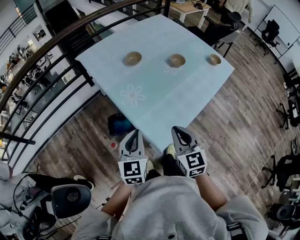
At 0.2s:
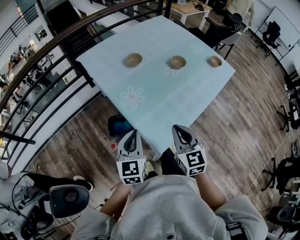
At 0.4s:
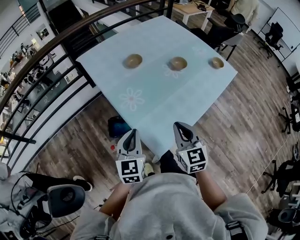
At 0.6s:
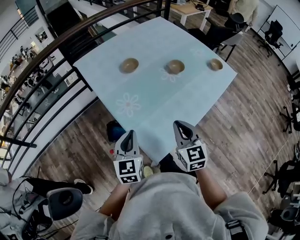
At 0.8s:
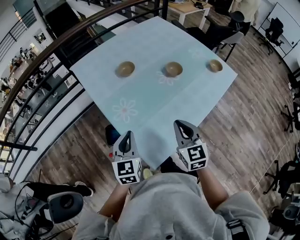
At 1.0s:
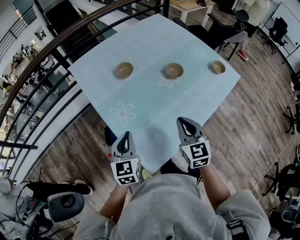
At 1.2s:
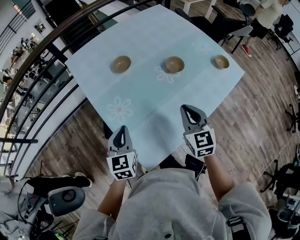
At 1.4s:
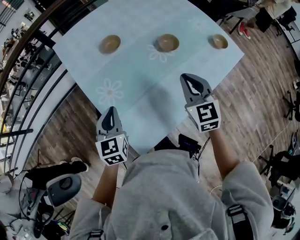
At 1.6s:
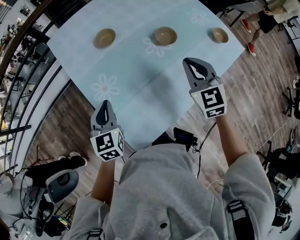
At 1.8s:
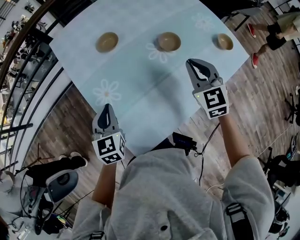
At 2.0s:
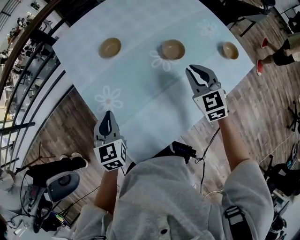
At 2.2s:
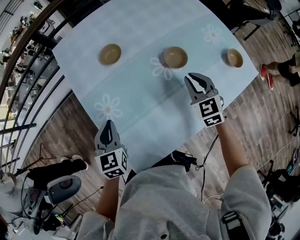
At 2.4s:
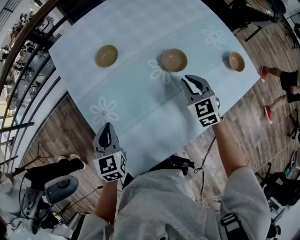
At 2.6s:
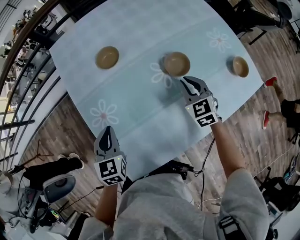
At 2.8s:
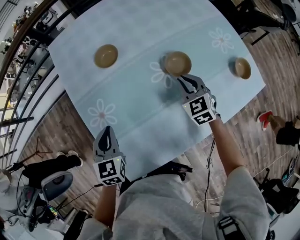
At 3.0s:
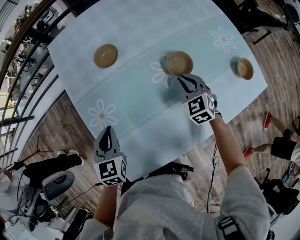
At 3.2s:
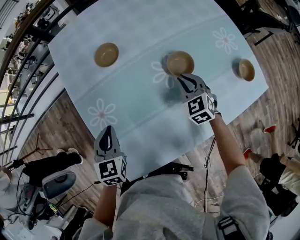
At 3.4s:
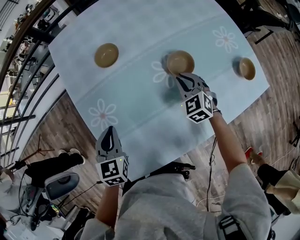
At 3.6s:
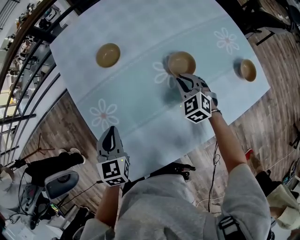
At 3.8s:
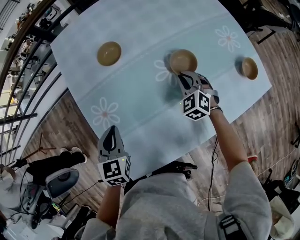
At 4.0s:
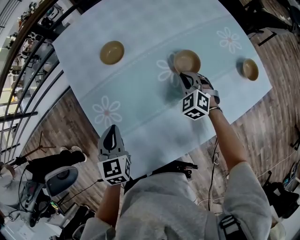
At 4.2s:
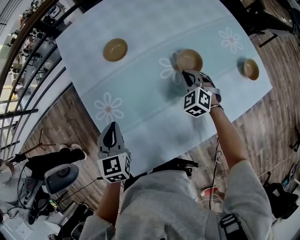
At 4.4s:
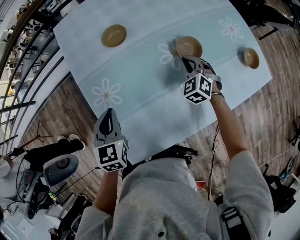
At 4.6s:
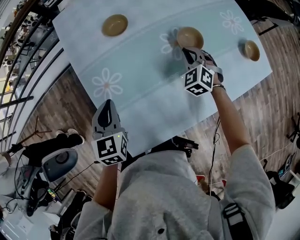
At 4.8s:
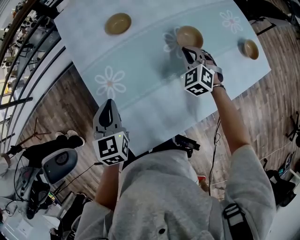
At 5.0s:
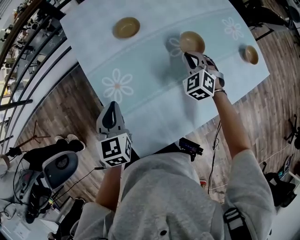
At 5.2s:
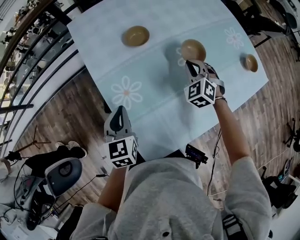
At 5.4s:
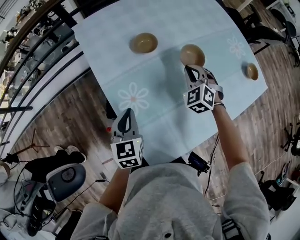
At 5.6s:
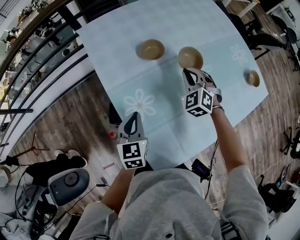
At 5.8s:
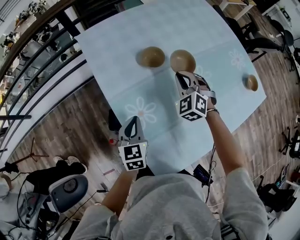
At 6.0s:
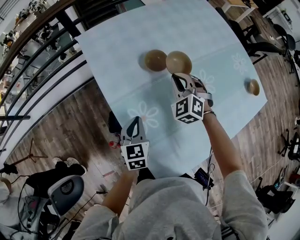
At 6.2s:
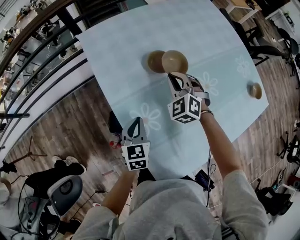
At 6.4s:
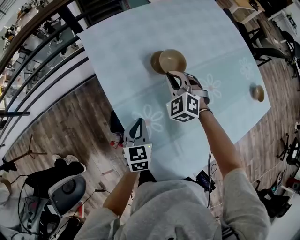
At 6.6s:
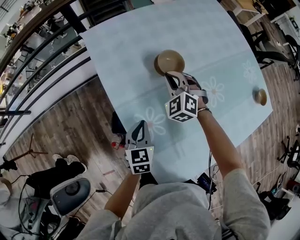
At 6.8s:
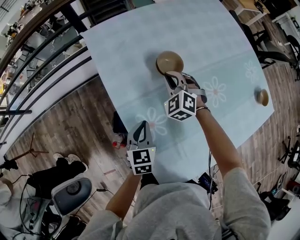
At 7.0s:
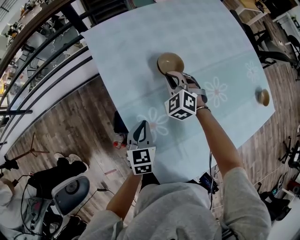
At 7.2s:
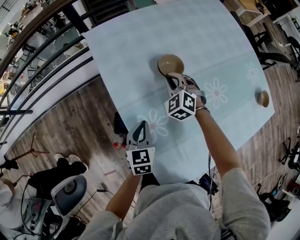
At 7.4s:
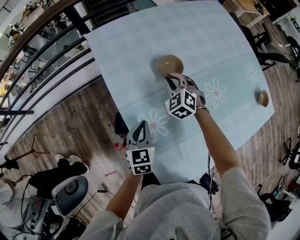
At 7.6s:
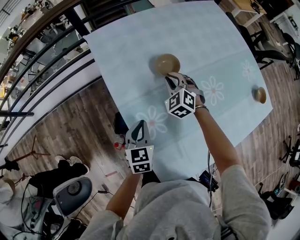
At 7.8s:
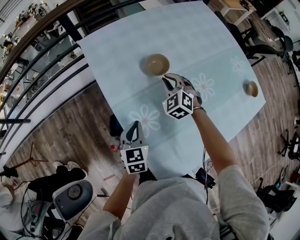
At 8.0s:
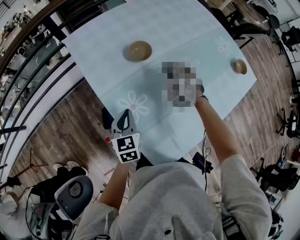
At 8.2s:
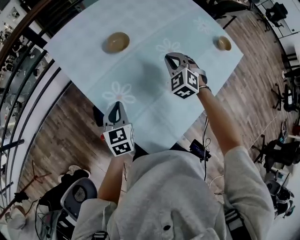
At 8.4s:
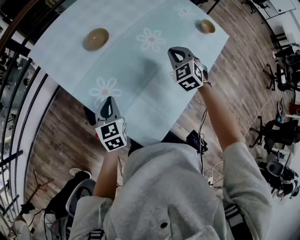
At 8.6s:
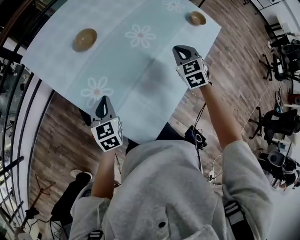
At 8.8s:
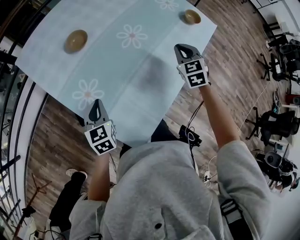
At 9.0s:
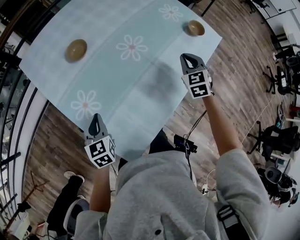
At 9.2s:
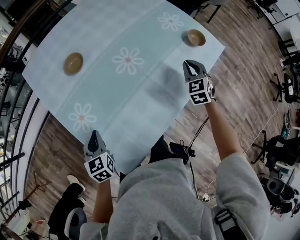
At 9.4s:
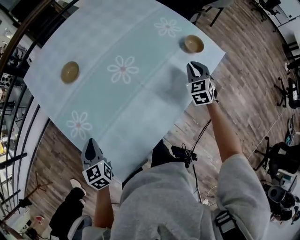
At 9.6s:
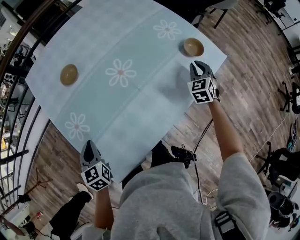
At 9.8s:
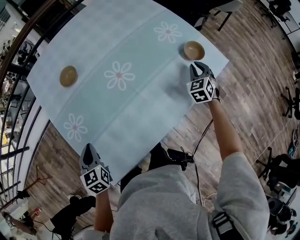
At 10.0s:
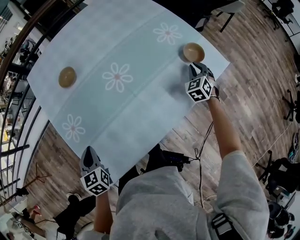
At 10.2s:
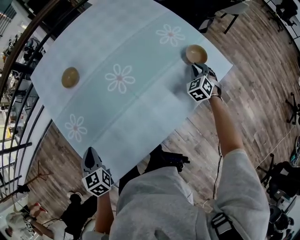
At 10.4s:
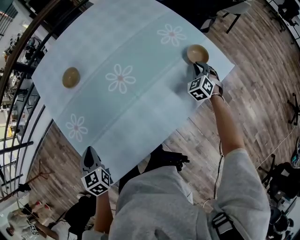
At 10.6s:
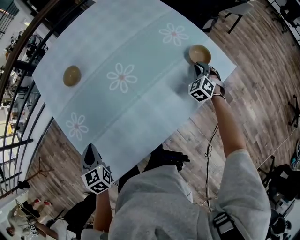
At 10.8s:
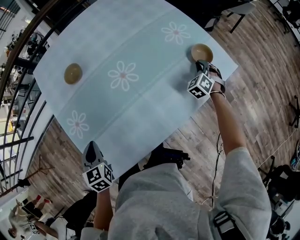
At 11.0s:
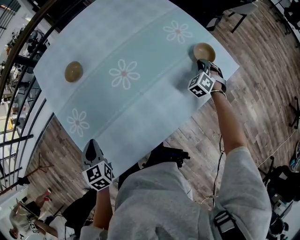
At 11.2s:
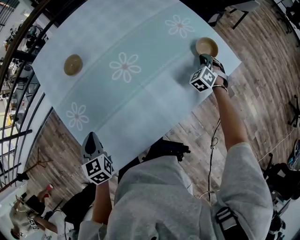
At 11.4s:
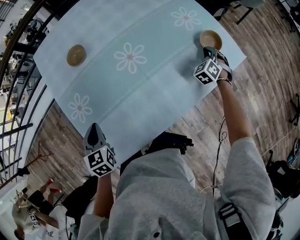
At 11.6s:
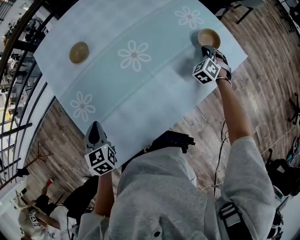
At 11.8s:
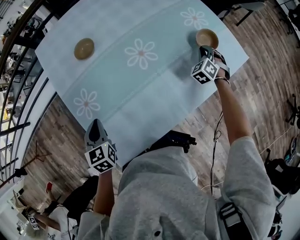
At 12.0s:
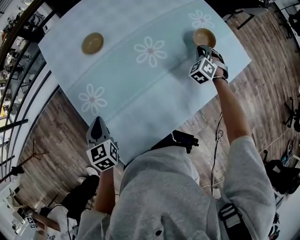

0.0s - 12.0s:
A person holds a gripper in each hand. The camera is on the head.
0.0s - 1.6s: The right gripper travels forward and to the right by some 35 cm; the left gripper moves forward, about 20 cm.
1.6s - 3.0s: The left gripper heads downward, covering about 5 cm; the right gripper moves downward and forward, roughly 20 cm, and rotates some 20 degrees.
3.0s - 4.4s: The grippers make only small movements.
4.4s - 6.0s: The right gripper goes some 20 cm to the left; the left gripper heads to the left, forward and downward, covering roughly 15 cm.
6.0s - 7.6s: The right gripper travels to the left and downward by roughly 10 cm.
7.6s - 9.0s: The right gripper moves to the right, about 50 cm, and rotates roughly 40 degrees. Meanwhile the left gripper shifts about 15 cm to the right and backward.
9.0s - 10.4s: The left gripper moves roughly 5 cm, and swivels some 20 degrees. The right gripper travels to the right, forward and downward by approximately 25 cm, and swivels approximately 20 degrees.
10.4s - 12.0s: The left gripper travels to the left by some 5 cm, while the right gripper is displaced to the left by about 15 cm.

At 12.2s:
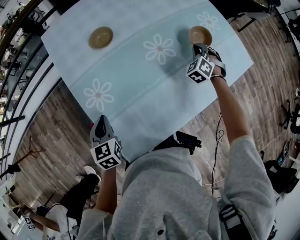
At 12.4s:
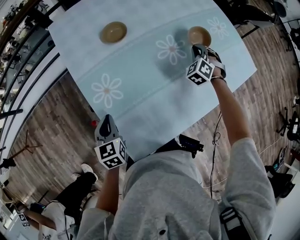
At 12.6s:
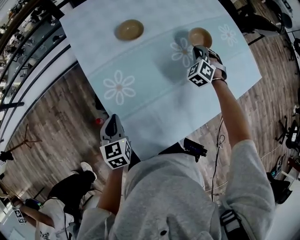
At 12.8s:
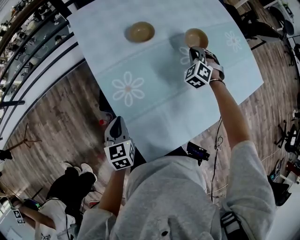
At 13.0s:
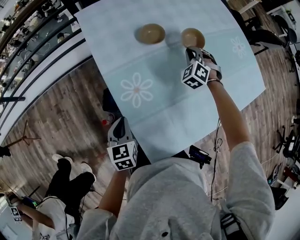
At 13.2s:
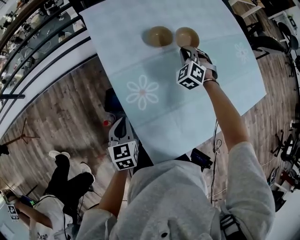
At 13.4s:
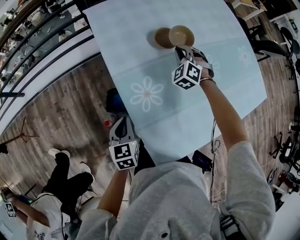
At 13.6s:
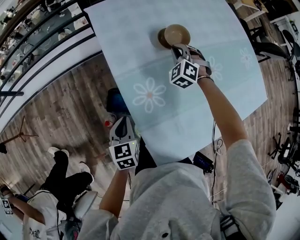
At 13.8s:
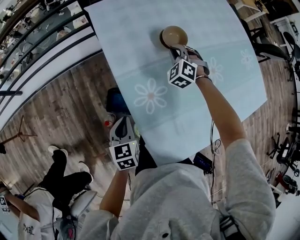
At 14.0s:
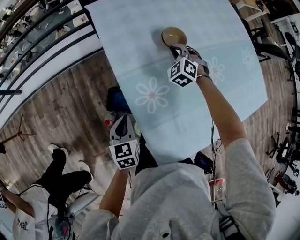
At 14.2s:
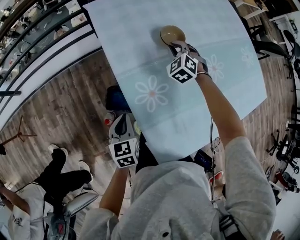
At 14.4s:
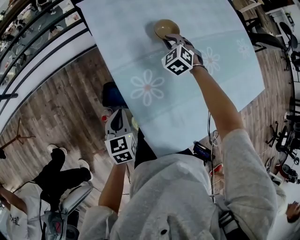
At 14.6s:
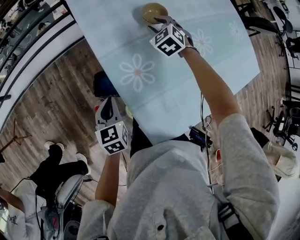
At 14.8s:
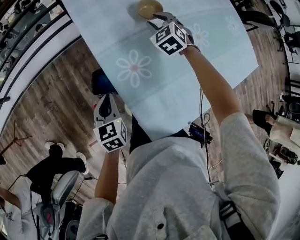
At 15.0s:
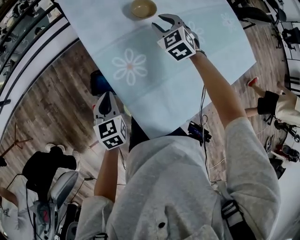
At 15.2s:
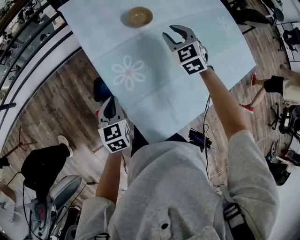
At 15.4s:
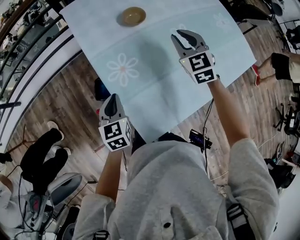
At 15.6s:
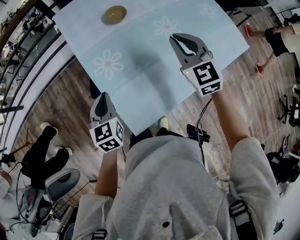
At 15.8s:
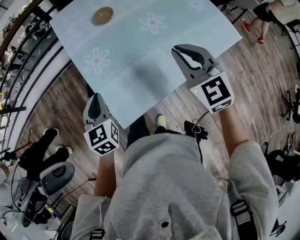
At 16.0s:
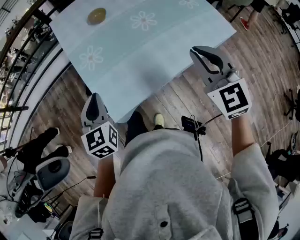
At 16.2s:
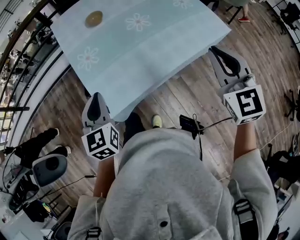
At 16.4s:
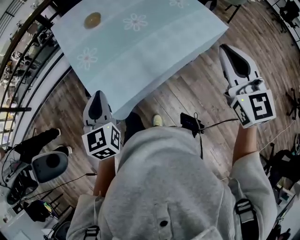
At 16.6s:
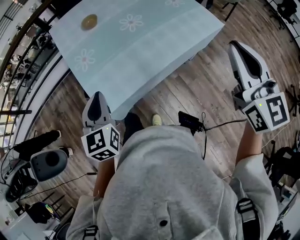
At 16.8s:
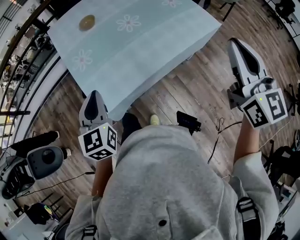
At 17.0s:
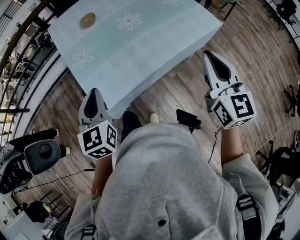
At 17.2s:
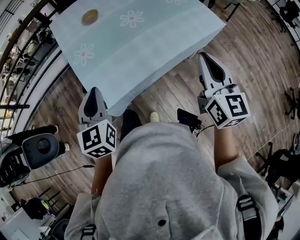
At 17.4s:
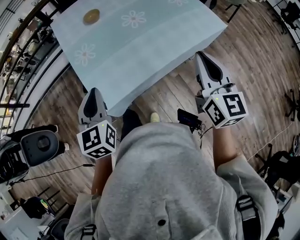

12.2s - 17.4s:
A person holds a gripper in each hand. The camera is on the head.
12.2s - 14.0s: The left gripper shifts approximately 15 cm to the left, while the right gripper is displaced to the left by approximately 40 cm, and swivels approximately 20 degrees.
14.0s - 15.6s: The left gripper heads to the right, upward and backward, covering some 20 cm, while the right gripper goes about 40 cm backward, upward and to the right, turns by roughly 40 degrees, and opens, then closes once more.
15.6s - 17.4s: The left gripper heads backward, to the right and upward, covering approximately 20 cm; the right gripper travels backward and to the right by about 35 cm, and swivels about 30 degrees.

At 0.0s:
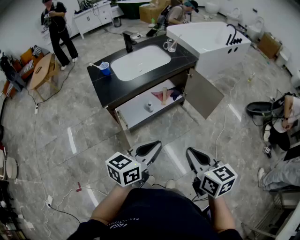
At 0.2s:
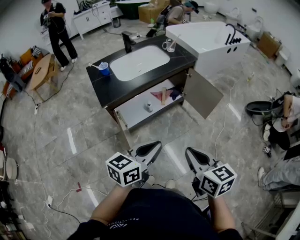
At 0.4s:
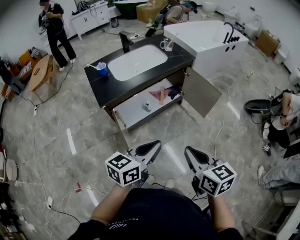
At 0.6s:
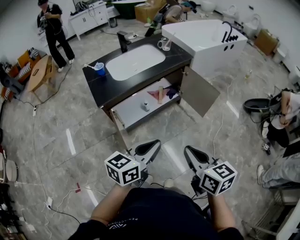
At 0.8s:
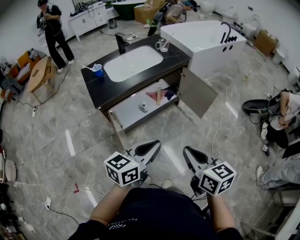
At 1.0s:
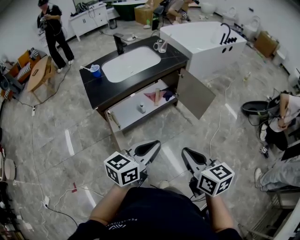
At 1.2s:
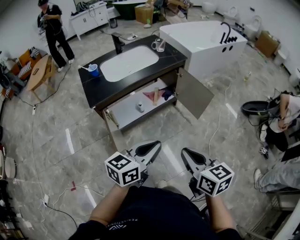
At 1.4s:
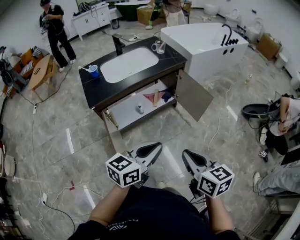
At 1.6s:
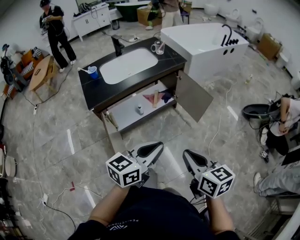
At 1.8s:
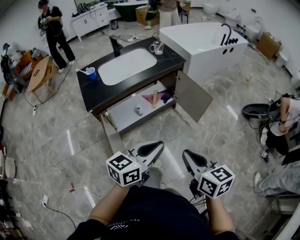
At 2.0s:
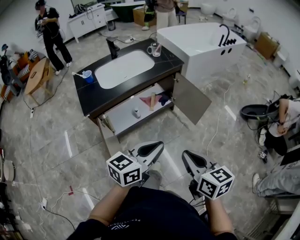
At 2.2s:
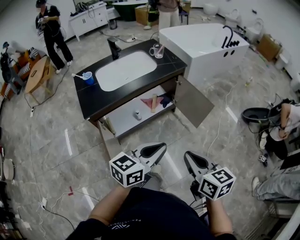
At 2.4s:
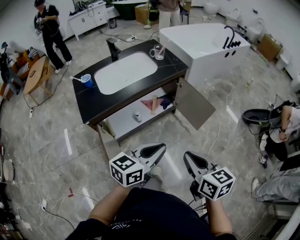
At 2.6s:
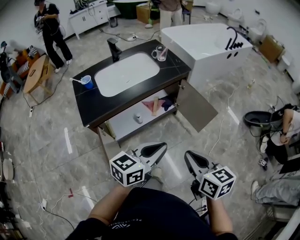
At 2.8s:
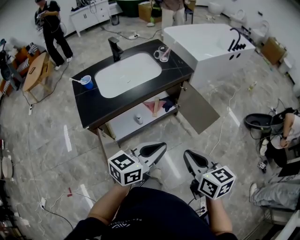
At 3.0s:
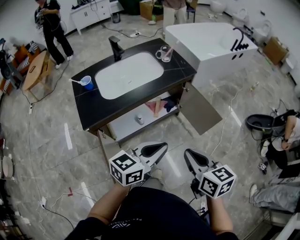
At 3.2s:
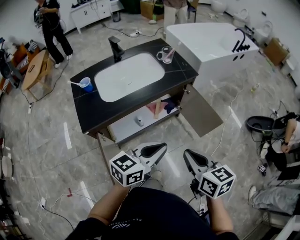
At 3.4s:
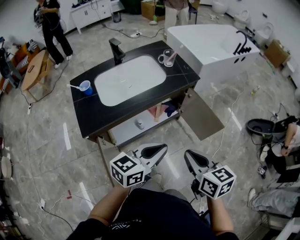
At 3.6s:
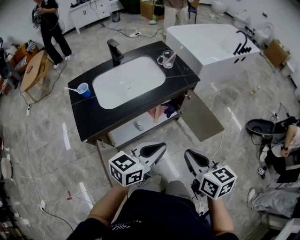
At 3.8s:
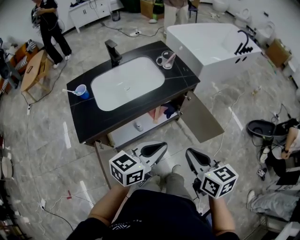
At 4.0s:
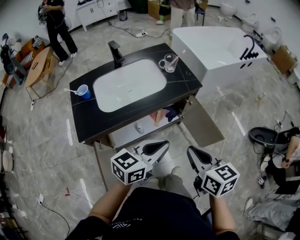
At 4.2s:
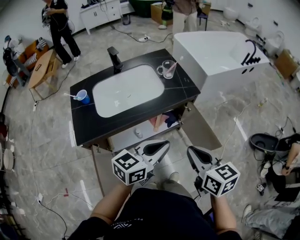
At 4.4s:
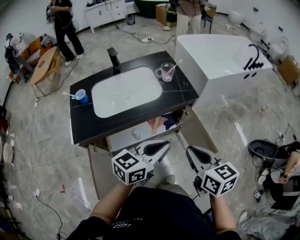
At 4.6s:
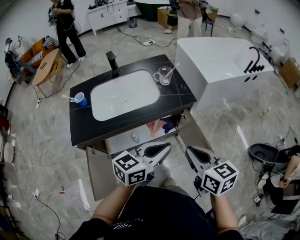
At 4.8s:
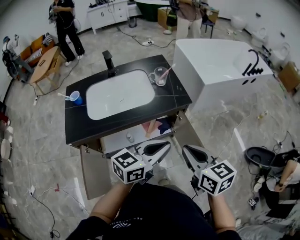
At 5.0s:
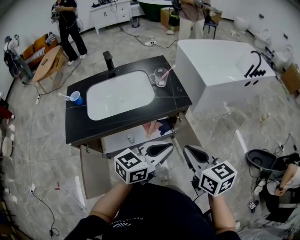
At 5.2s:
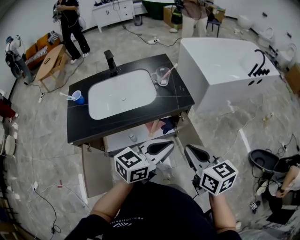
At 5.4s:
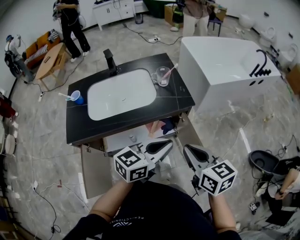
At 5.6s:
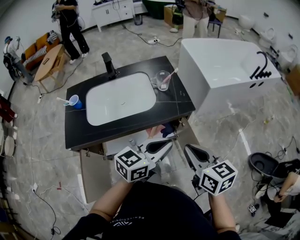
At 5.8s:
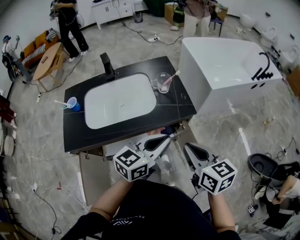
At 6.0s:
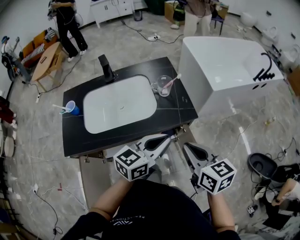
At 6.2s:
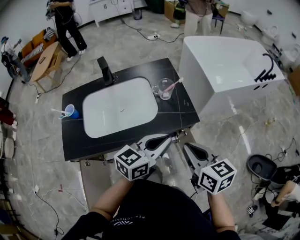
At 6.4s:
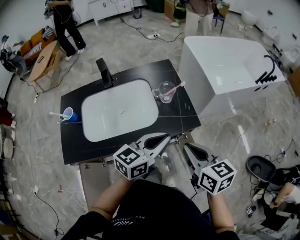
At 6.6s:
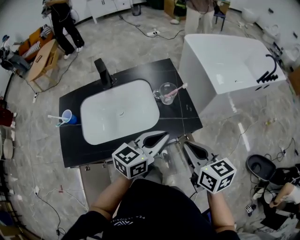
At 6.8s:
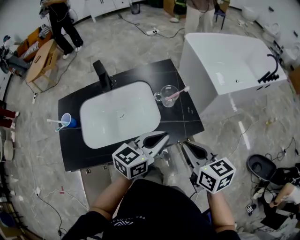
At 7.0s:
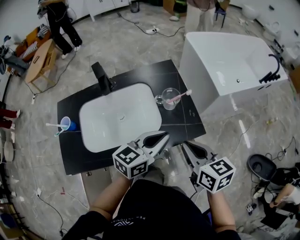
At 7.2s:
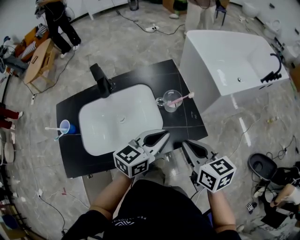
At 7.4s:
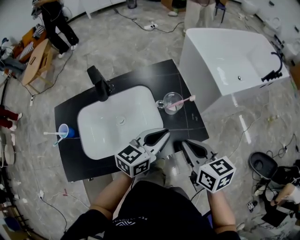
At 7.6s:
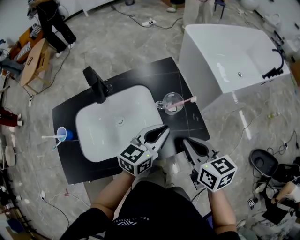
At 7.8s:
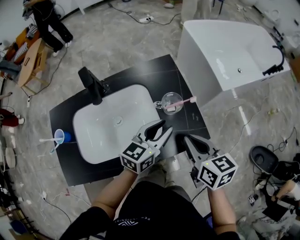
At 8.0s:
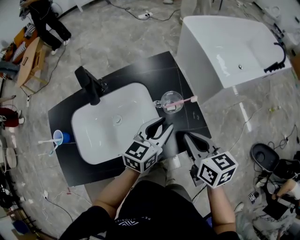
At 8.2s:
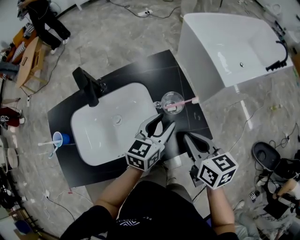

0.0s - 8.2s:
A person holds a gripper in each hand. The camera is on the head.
0.0s - 1.6s: Both grippers move to the right, some 10 cm.
1.6s - 3.2s: Both grippers travel together forward, approximately 20 cm.
3.2s - 5.0s: Both grippers move forward and to the right, approximately 25 cm.
5.0s - 6.6s: The grippers both shift forward by approximately 20 cm.
6.6s - 8.2s: Both grippers move forward and downward, roughly 15 cm. The left gripper opens.
